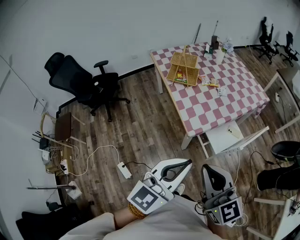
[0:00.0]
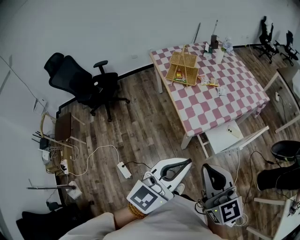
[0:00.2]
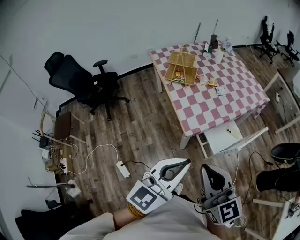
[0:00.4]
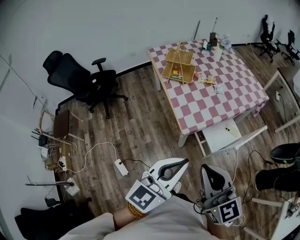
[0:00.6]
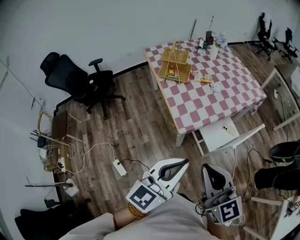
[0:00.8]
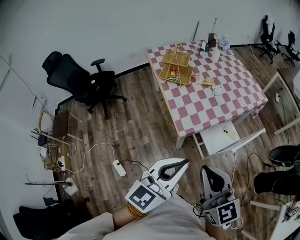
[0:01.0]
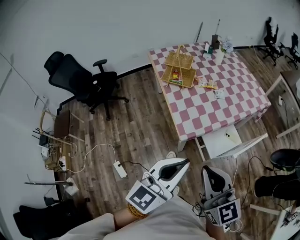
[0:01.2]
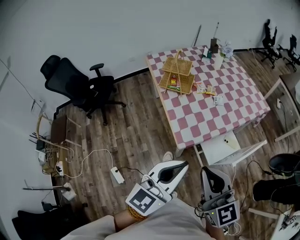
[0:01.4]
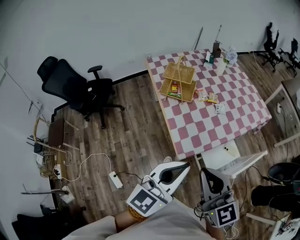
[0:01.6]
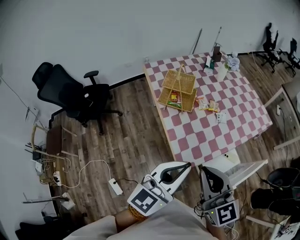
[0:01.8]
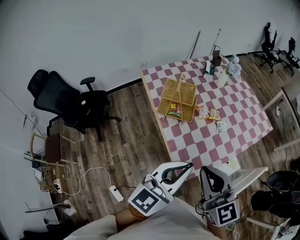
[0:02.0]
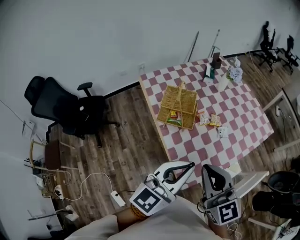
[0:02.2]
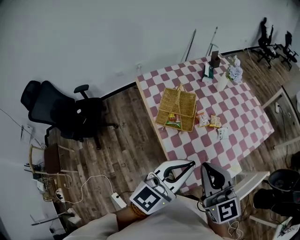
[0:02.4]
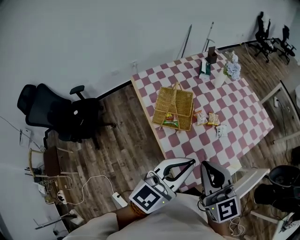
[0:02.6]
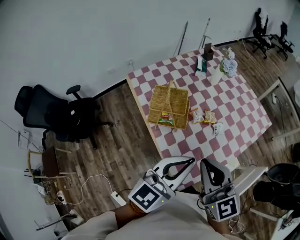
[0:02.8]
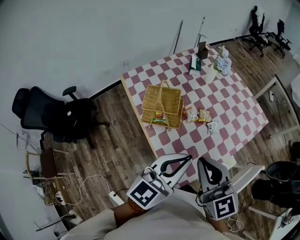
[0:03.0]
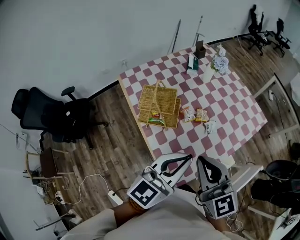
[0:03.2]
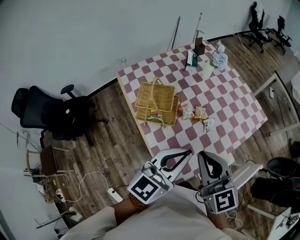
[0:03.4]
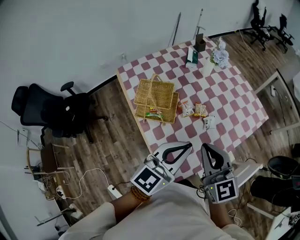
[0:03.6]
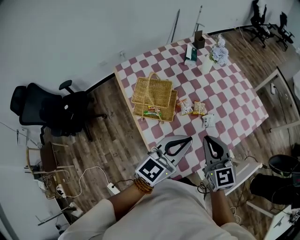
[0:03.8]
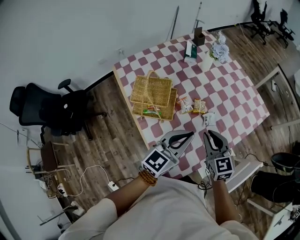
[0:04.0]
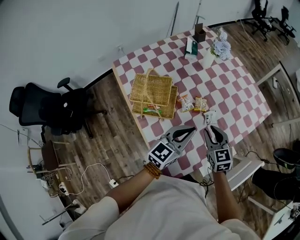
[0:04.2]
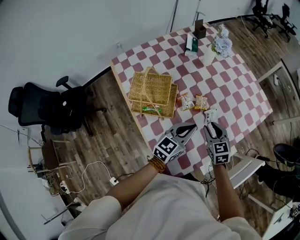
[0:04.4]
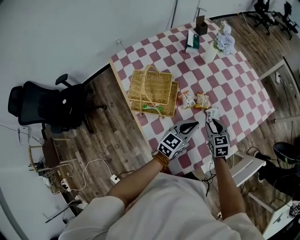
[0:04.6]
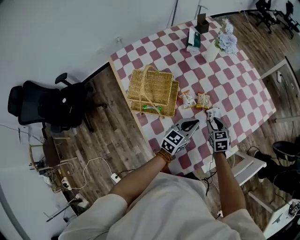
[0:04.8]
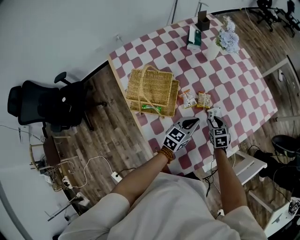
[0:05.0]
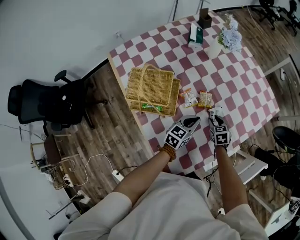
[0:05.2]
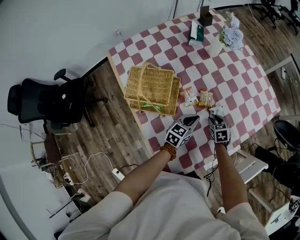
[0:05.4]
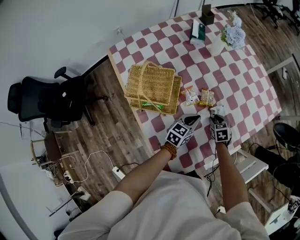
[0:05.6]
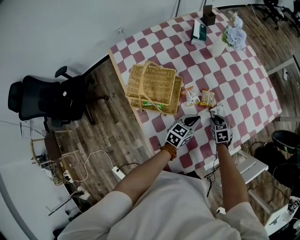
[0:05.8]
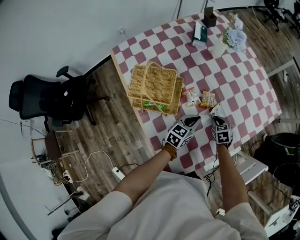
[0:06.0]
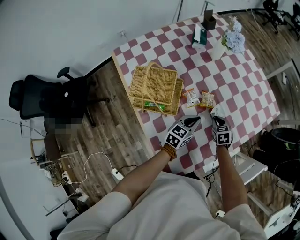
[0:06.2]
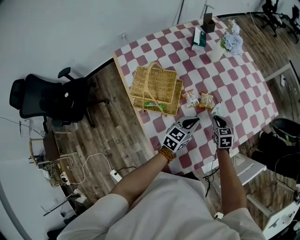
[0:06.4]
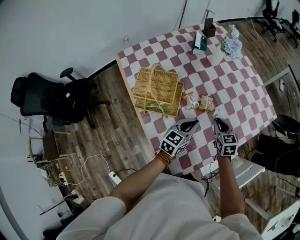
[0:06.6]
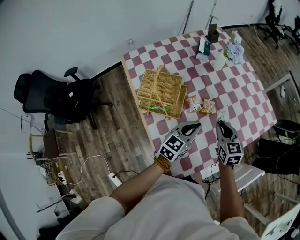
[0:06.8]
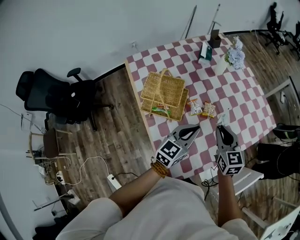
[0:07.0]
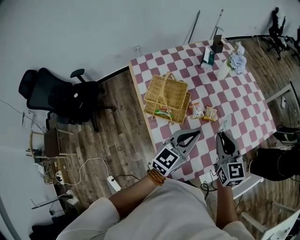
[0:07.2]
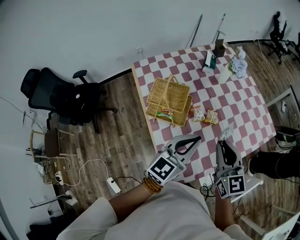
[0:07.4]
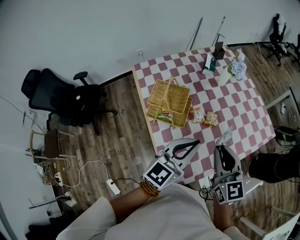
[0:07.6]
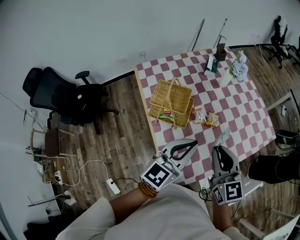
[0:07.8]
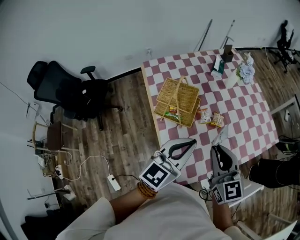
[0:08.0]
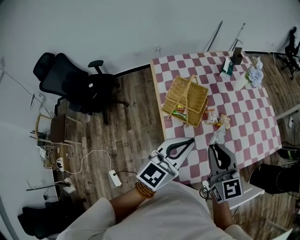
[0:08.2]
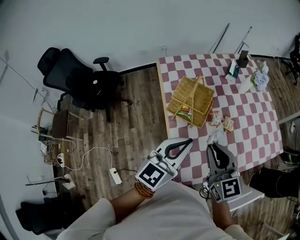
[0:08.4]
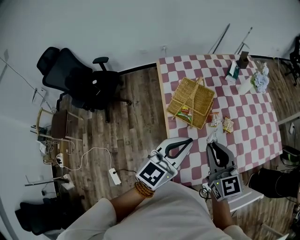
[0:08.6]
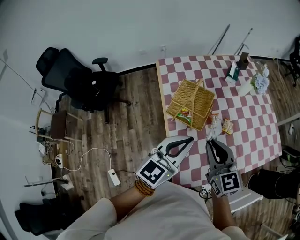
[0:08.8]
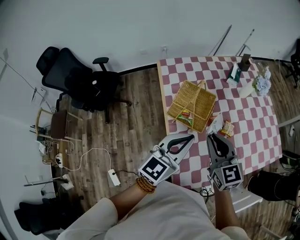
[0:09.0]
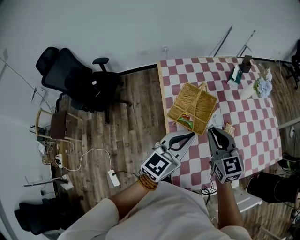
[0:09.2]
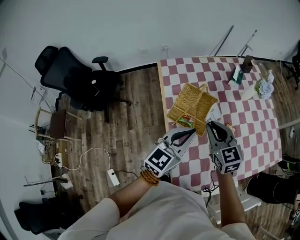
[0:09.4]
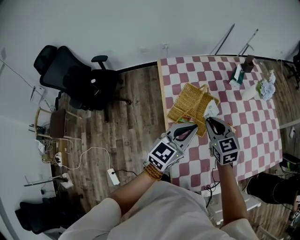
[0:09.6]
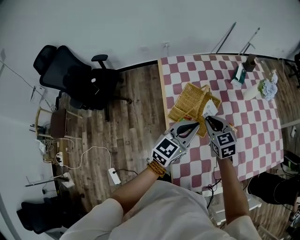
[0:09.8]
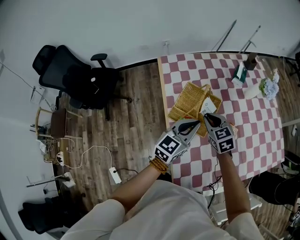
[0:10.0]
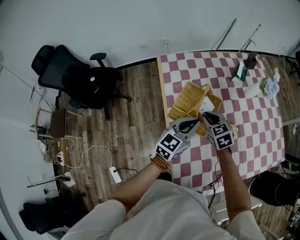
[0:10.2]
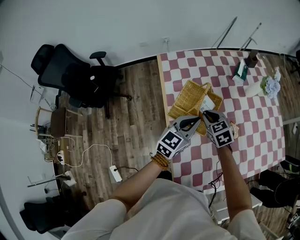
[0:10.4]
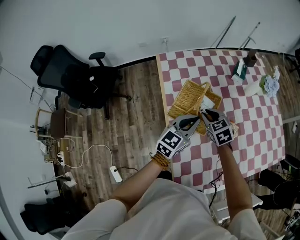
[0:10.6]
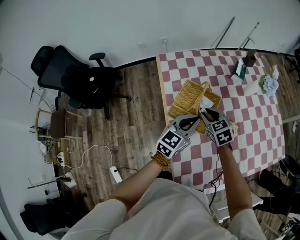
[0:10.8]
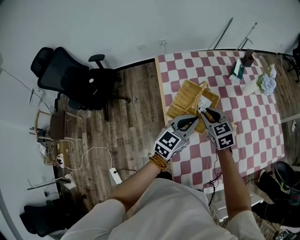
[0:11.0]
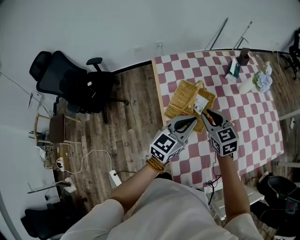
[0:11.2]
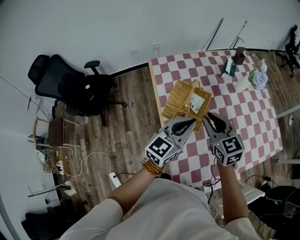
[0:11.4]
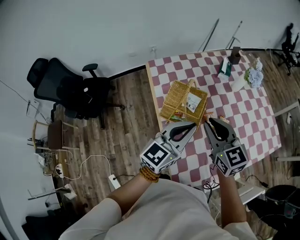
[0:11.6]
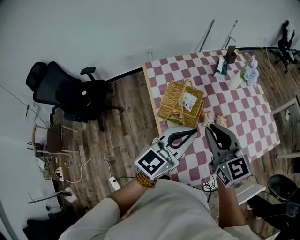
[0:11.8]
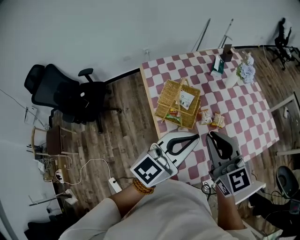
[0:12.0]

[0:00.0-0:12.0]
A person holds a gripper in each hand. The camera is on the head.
0:00.0 to 0:01.6: Both grippers move forward, some 15 cm.
0:01.6 to 0:03.0: Both grippers travel together forward, some 30 cm.
0:03.0 to 0:04.4: Both grippers move downward and forward, approximately 30 cm. The right gripper tips its fingers downward by roughly 30 degrees, and opens its fingers.
0:04.4 to 0:06.0: The right gripper heads downward, covering approximately 20 cm, turns by some 20 degrees, and closes. The left gripper heads downward and forward, covering some 15 cm.
0:06.0 to 0:07.6: The right gripper heads upward, covering approximately 40 cm, and points its fingers about 50 degrees further upward; the left gripper heads upward and backward, covering approximately 35 cm, and rotates roughly 30 degrees.
0:07.6 to 0:09.0: The grippers both shift to the left by about 15 cm.
0:09.0 to 0:10.4: The right gripper shifts some 25 cm downward and forward, and rotates about 30 degrees; the left gripper is displaced forward and downward by some 20 cm.
0:10.4 to 0:12.0: Both grippers move upward and backward, roughly 30 cm. The left gripper turns by approximately 20 degrees. The right gripper angles its fingers upward, by about 40 degrees.

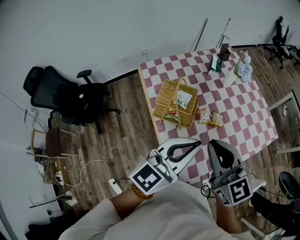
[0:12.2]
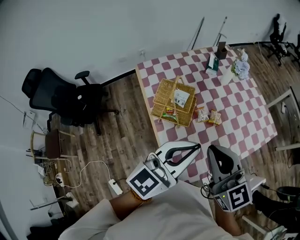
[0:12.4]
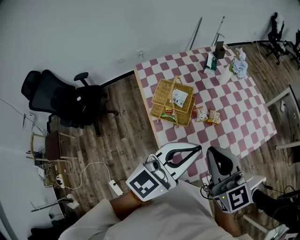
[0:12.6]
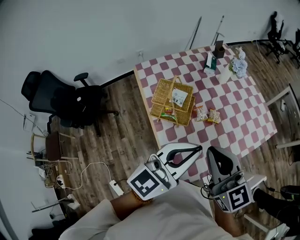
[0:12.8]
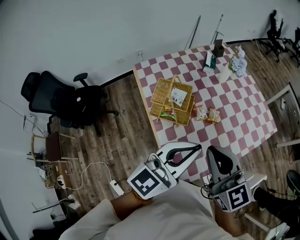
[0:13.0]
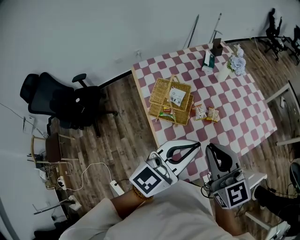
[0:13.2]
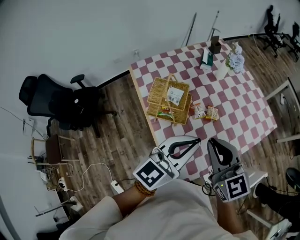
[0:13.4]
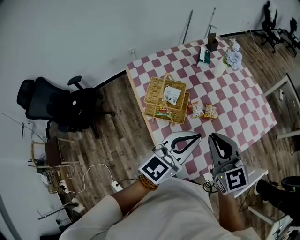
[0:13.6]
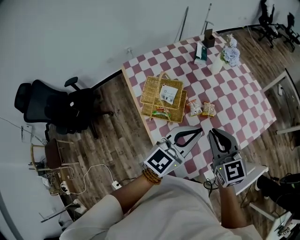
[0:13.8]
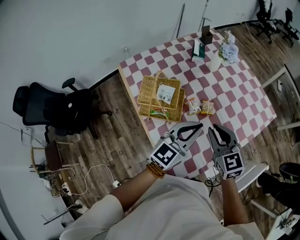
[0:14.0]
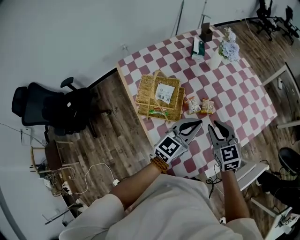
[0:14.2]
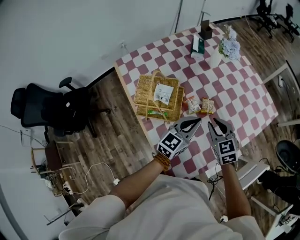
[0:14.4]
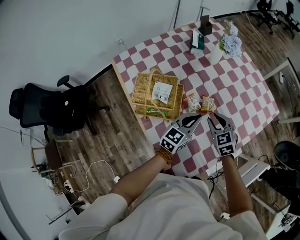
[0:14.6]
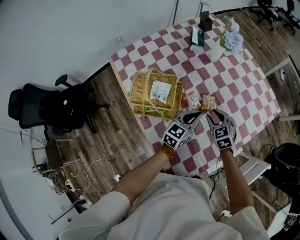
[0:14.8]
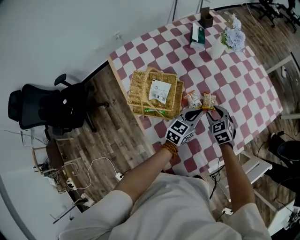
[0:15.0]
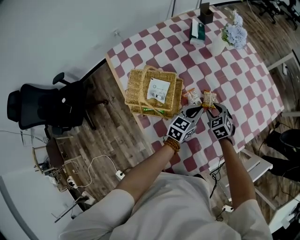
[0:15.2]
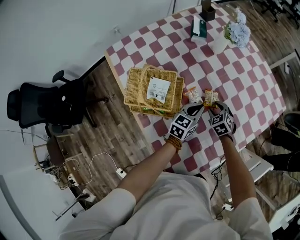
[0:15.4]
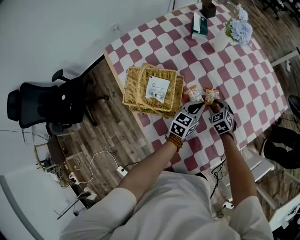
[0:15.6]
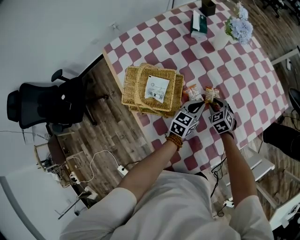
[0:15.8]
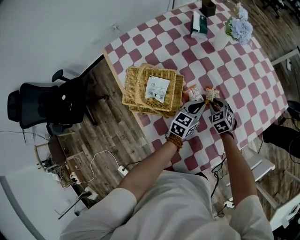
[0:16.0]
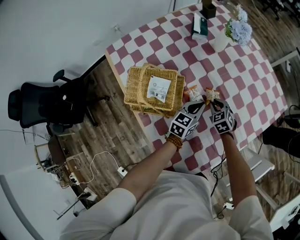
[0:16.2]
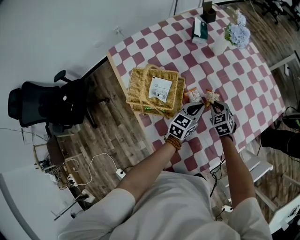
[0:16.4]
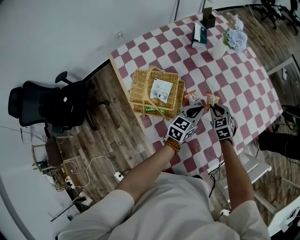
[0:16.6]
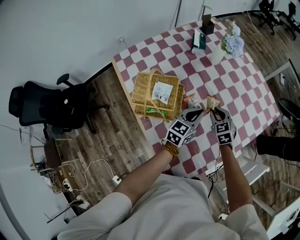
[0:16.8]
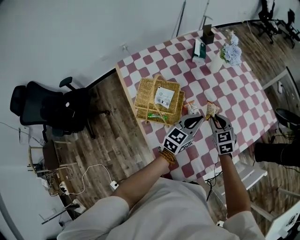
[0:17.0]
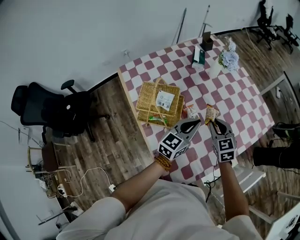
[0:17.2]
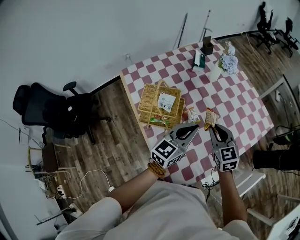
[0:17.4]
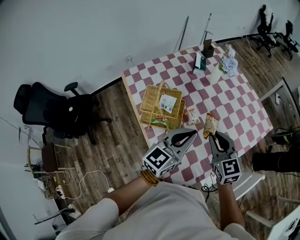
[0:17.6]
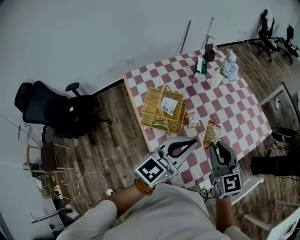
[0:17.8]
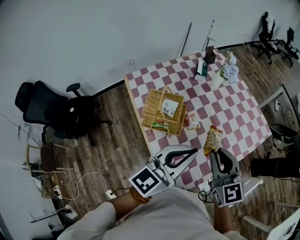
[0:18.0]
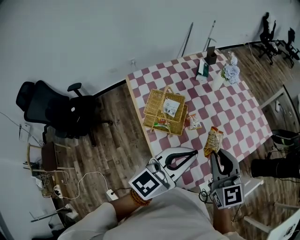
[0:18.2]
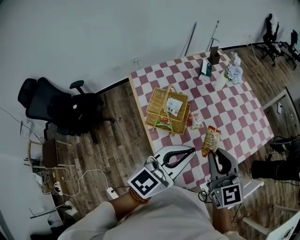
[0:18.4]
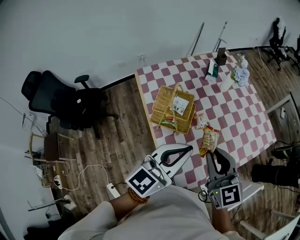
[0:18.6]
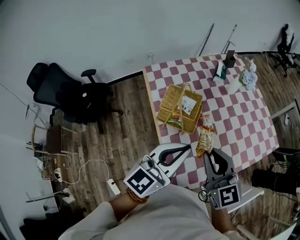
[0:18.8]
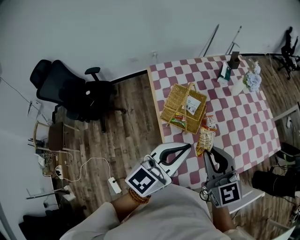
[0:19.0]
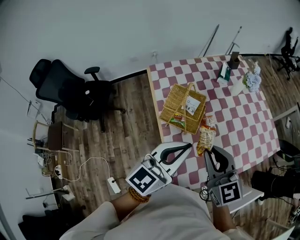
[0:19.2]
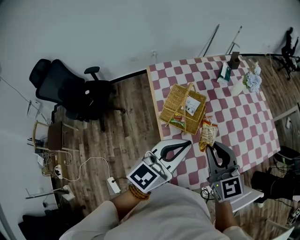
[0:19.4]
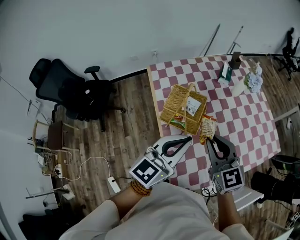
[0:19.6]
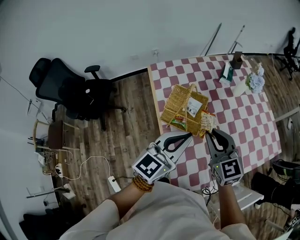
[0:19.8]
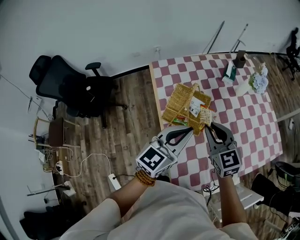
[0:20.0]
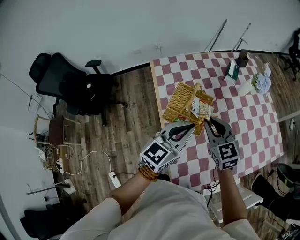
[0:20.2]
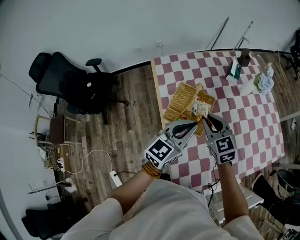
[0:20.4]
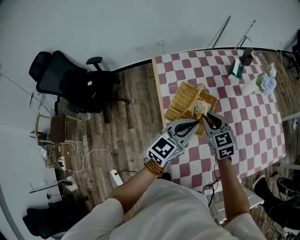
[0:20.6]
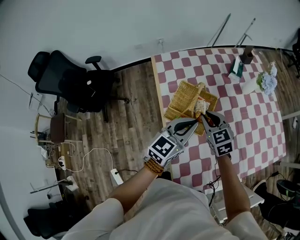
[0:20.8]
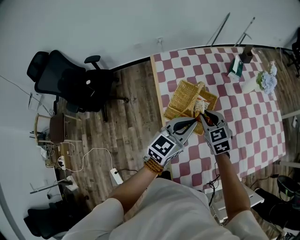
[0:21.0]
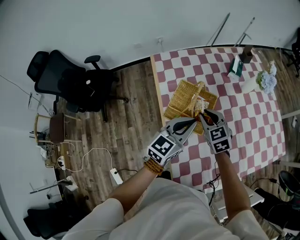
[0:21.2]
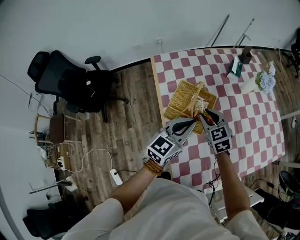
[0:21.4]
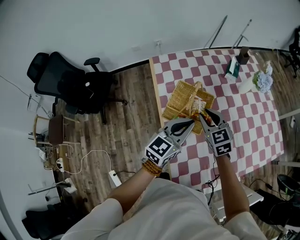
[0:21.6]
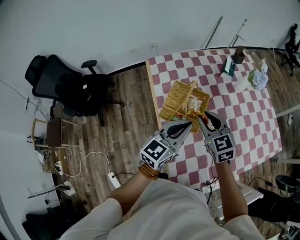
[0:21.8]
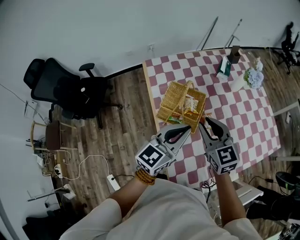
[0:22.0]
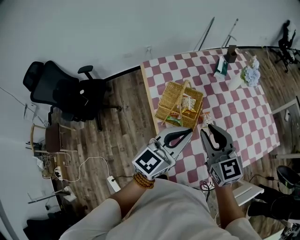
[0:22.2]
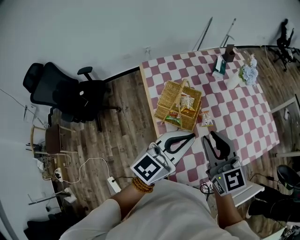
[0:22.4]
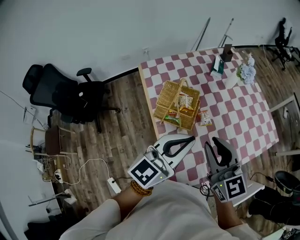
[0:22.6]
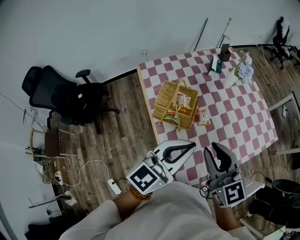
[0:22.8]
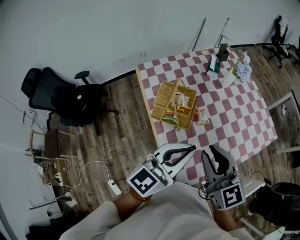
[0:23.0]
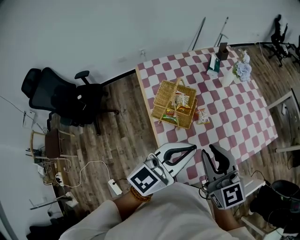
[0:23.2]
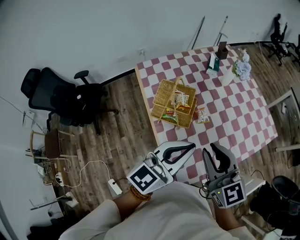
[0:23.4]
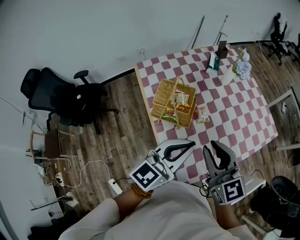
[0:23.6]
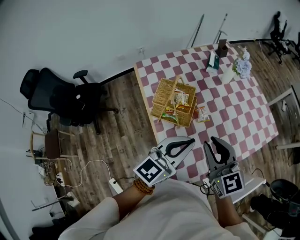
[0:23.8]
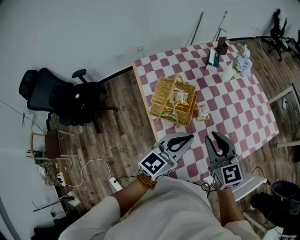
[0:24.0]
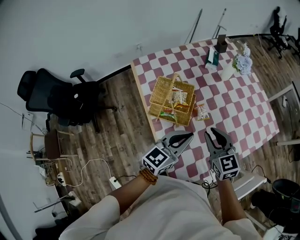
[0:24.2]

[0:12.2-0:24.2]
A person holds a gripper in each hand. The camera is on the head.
0:12.2 to 0:13.8: The right gripper heads downward, to the right and forward, covering about 15 cm; the left gripper shifts roughly 10 cm downward, forward and to the right.
0:13.8 to 0:15.2: The two grippers go about 35 cm downward and forward. The left gripper swivels about 20 degrees; the right gripper tips its fingers downward by some 40 degrees, and opens up.
0:15.2 to 0:16.6: The right gripper closes its fingers.
0:16.6 to 0:18.2: Both grippers travel together upward and backward, about 40 cm. The left gripper changes its angle by approximately 20 degrees, while the right gripper tilts its fingers some 40 degrees upward.
0:18.2 to 0:19.8: Both grippers travel together to the left, forward and downward, some 15 cm.
0:19.8 to 0:21.2: Both grippers travel together downward and forward, approximately 15 cm.
0:21.2 to 0:22.6: The two grippers go some 25 cm upward and backward. The right gripper turns by some 30 degrees.
0:22.6 to 0:24.2: The grippers both shift downward by about 15 cm.
